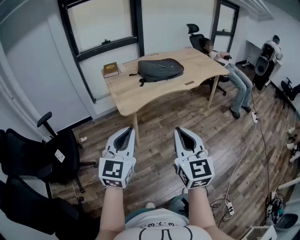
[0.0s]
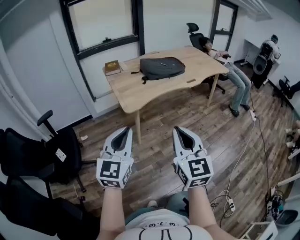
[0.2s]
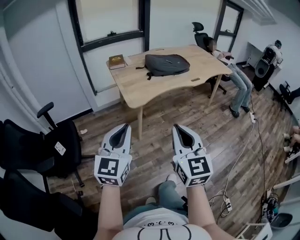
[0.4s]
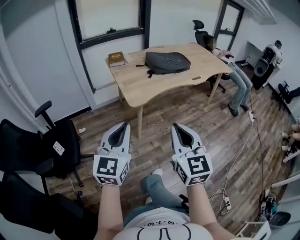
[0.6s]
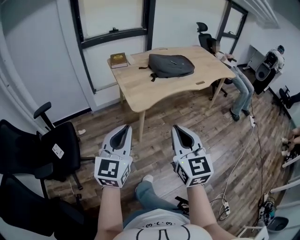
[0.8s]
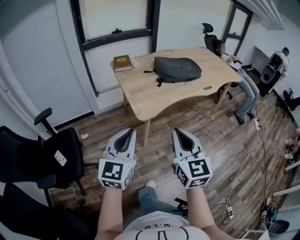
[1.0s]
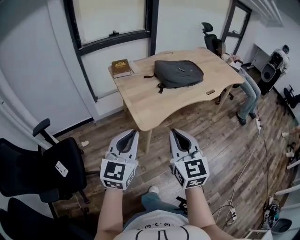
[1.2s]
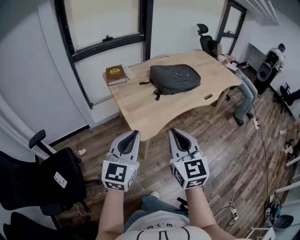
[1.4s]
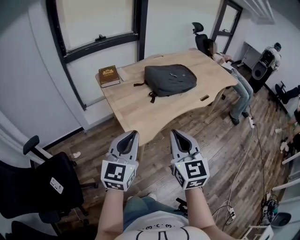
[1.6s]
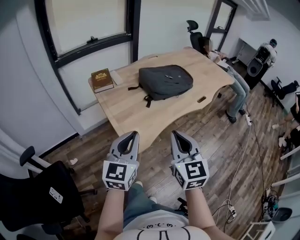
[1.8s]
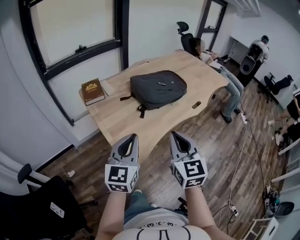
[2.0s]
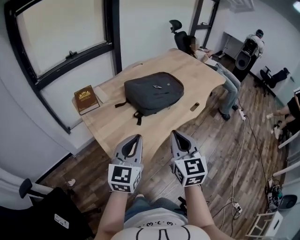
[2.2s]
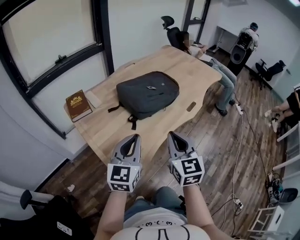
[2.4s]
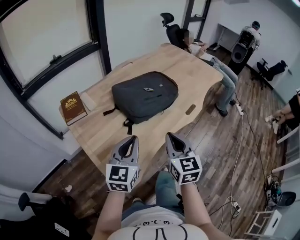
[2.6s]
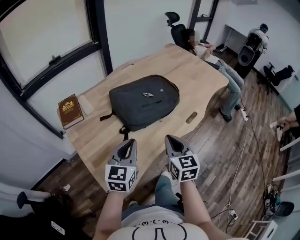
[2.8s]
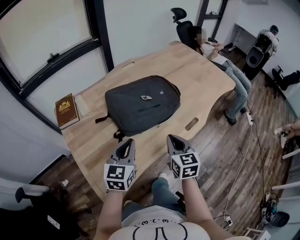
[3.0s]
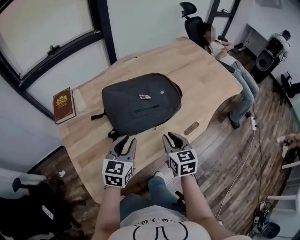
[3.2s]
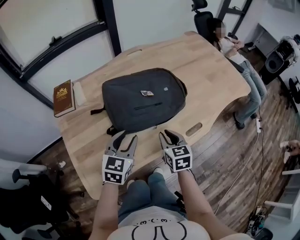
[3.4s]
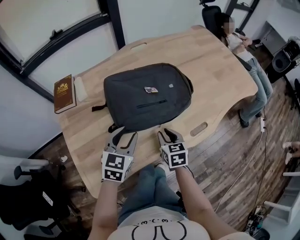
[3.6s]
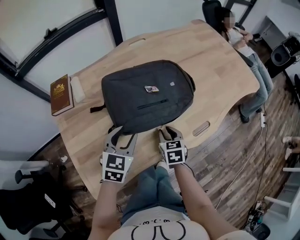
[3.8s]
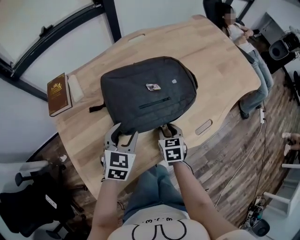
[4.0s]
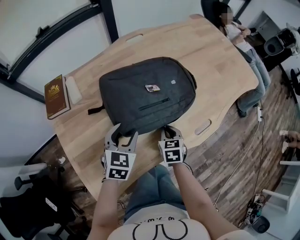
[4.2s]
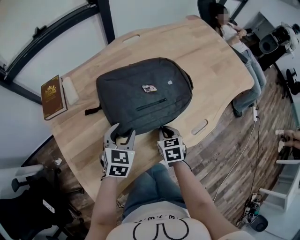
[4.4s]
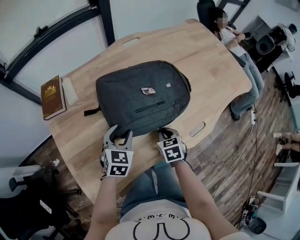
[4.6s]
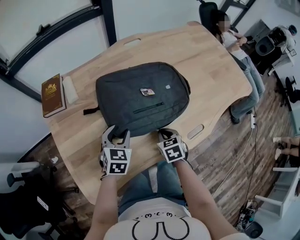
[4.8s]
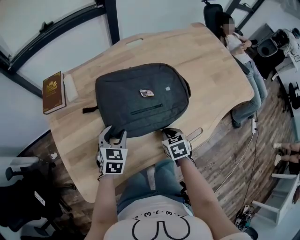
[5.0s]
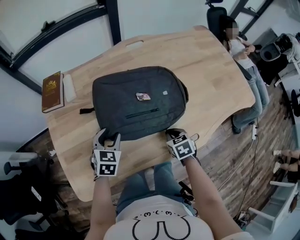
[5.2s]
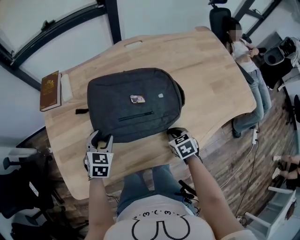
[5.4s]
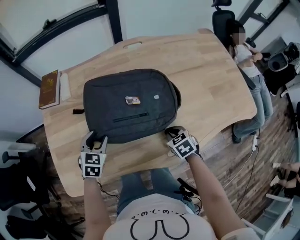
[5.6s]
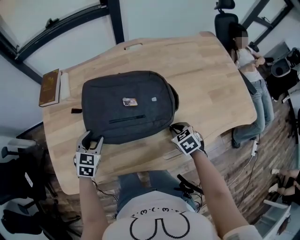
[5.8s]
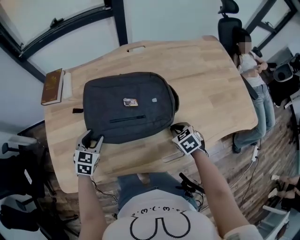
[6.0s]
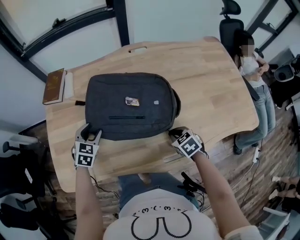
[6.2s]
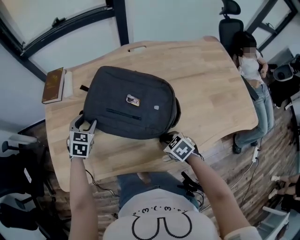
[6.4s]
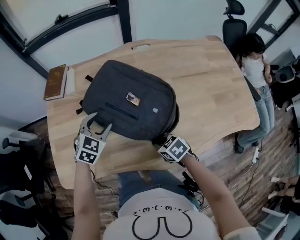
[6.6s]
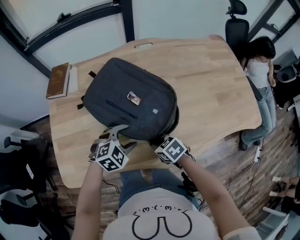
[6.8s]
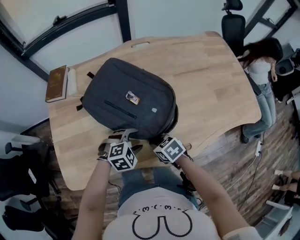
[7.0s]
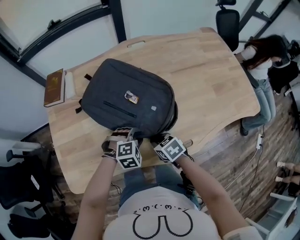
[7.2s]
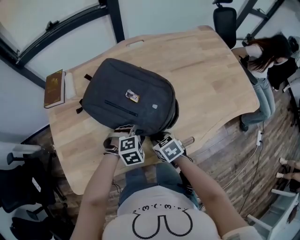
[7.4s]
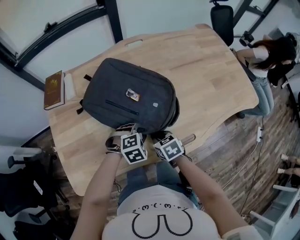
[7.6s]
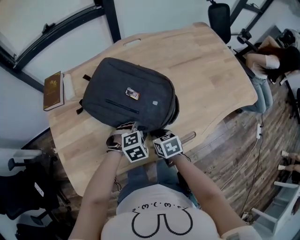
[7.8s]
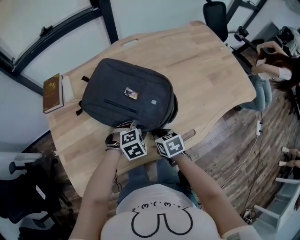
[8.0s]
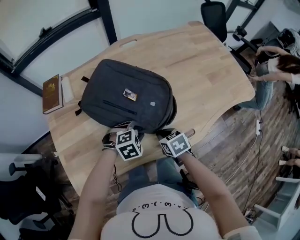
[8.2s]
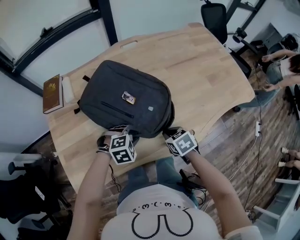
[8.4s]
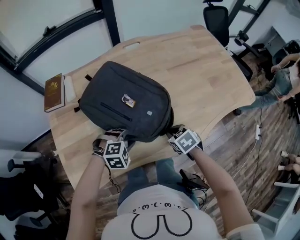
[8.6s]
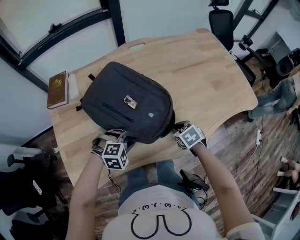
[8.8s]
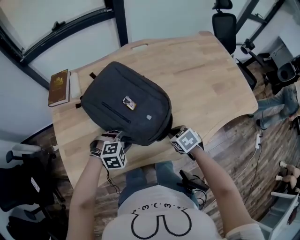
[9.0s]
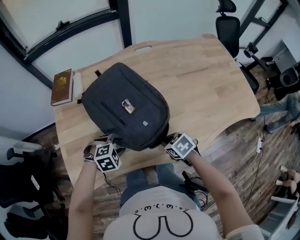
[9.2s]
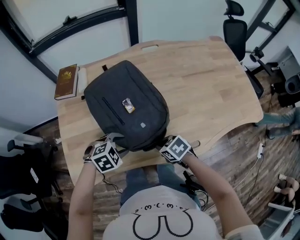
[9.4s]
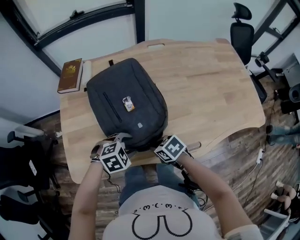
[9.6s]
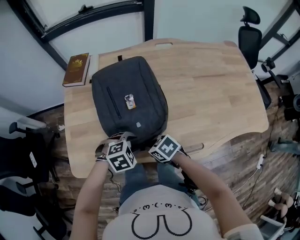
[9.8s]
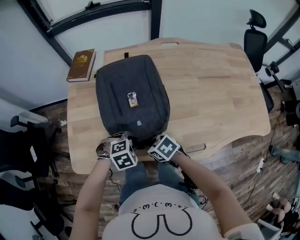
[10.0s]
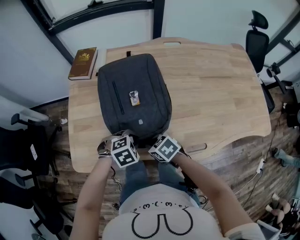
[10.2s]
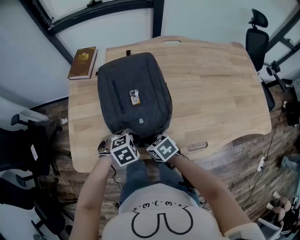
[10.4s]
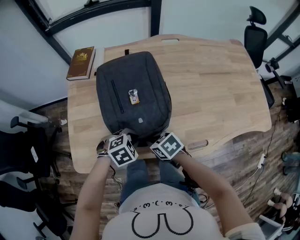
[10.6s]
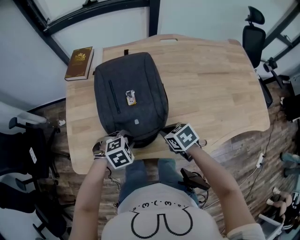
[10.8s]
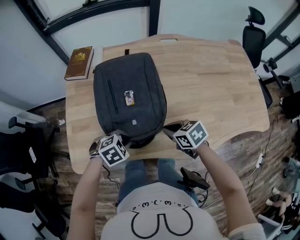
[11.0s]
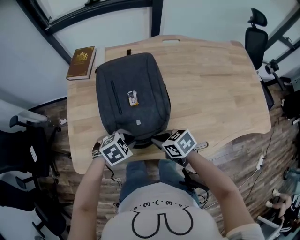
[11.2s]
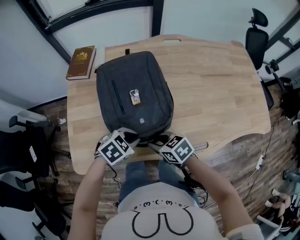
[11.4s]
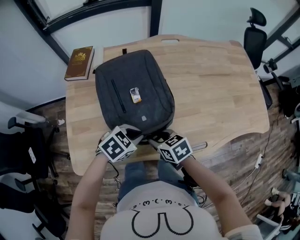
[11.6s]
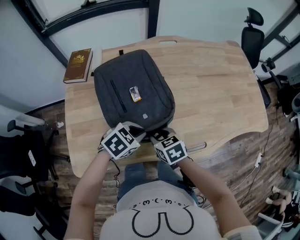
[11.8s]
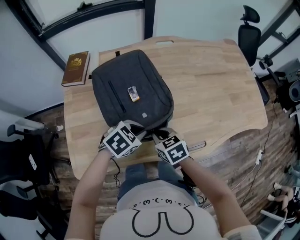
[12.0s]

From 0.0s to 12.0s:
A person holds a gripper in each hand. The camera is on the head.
From 0.0s to 1.6s: Both grippers travel together forward and to the left, approximately 30 cm.
From 1.6s to 3.0s: The two grippers go about 40 cm forward. The right gripper turns by some 20 degrees.
From 3.0s to 4.4s: The left gripper is displaced forward and downward by roughly 15 cm, turns by roughly 20 degrees, and opens. The right gripper heads downward and forward, covering roughly 20 cm, turns by some 30 degrees, and opens, then closes again.
From 4.4s to 6.0s: The right gripper moves approximately 20 cm, and turns by about 40 degrees.
From 6.0s to 7.6s: The right gripper shifts by some 20 cm, and changes its angle by some 20 degrees. The left gripper changes place by about 20 cm, changes its angle by about 60 degrees, and closes up.
From 7.6s to 9.0s: The left gripper moves to the left, approximately 10 cm; the right gripper is displaced to the right by about 5 cm.
From 9.0s to 10.4s: The right gripper ends up about 20 cm from where it was, and swivels some 20 degrees, while the left gripper rotates about 30 degrees, and opens and closes again.
From 10.4s to 12.0s: The right gripper changes place by some 10 cm, rotates about 20 degrees, and opens and closes again. The left gripper goes roughly 5 cm upward.

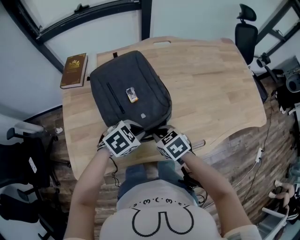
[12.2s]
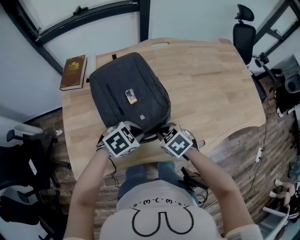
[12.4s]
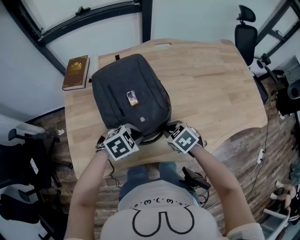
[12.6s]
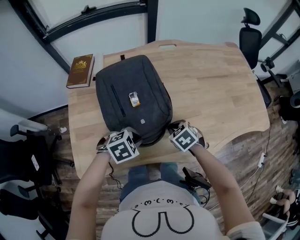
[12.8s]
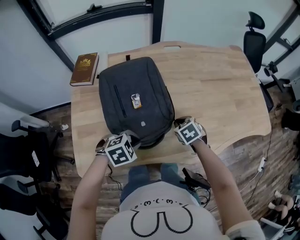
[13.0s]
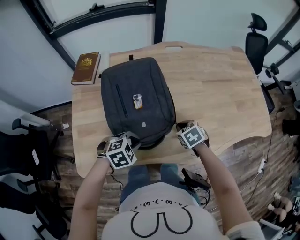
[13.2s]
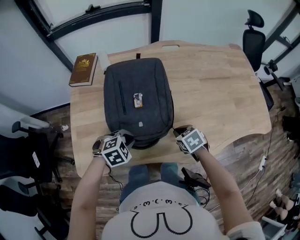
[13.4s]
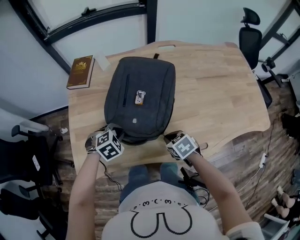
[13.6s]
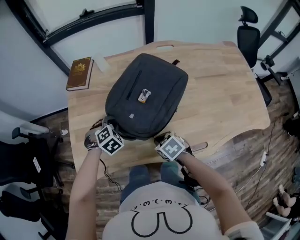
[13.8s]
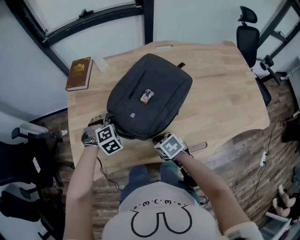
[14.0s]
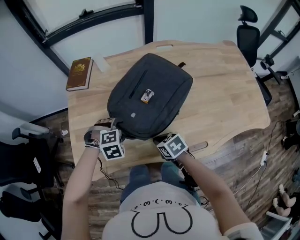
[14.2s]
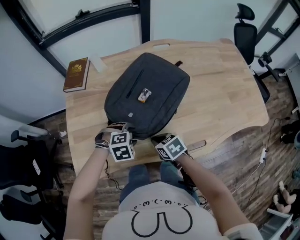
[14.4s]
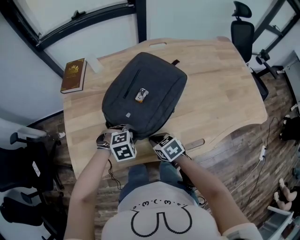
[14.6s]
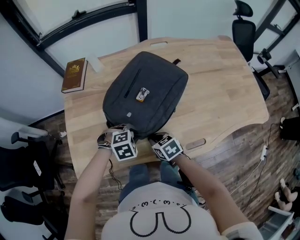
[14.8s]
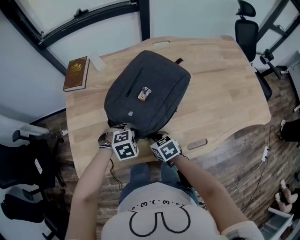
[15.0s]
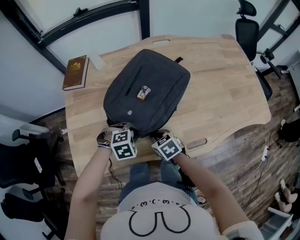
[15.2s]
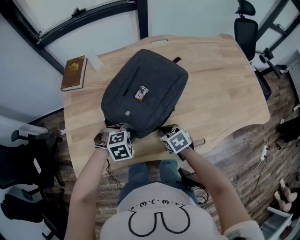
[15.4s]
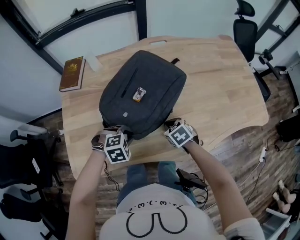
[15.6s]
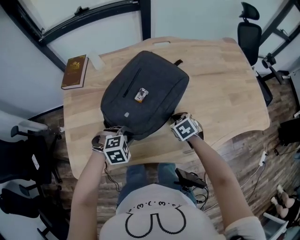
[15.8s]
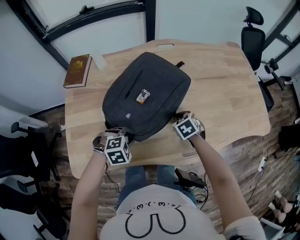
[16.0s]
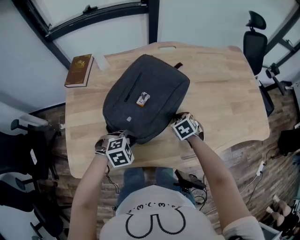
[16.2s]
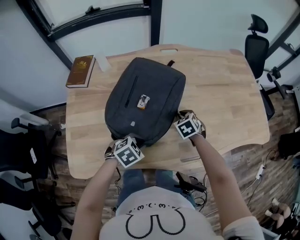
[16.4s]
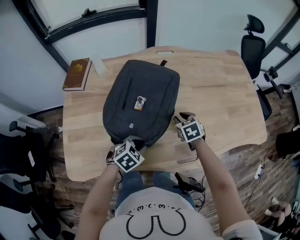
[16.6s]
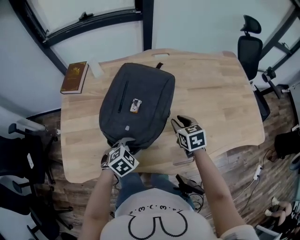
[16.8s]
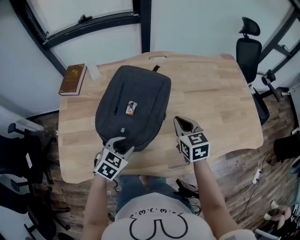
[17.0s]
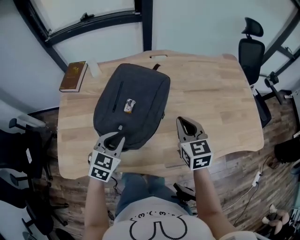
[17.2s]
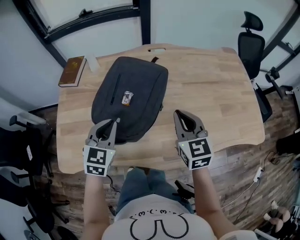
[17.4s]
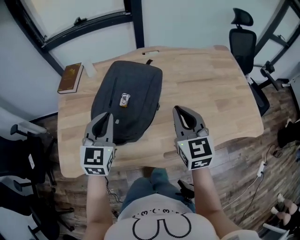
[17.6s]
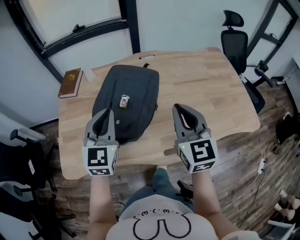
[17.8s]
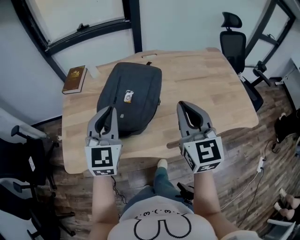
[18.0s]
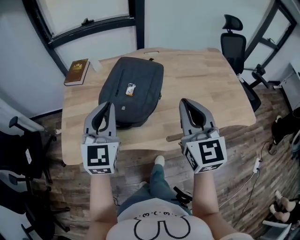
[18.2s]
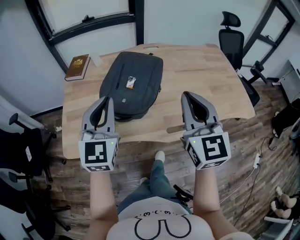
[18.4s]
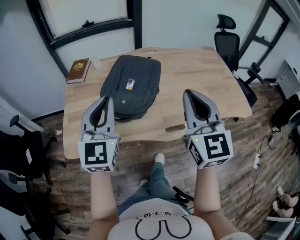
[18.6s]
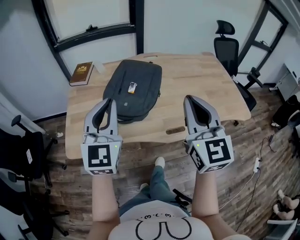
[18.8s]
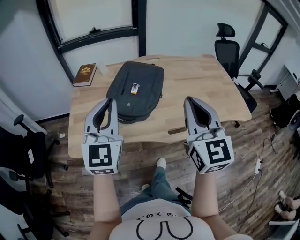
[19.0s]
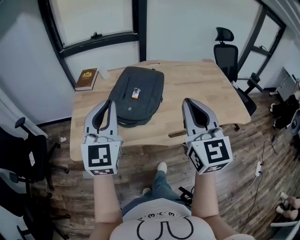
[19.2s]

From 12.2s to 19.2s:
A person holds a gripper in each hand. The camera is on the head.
From 12.2s to 13.6s: The left gripper shifts by some 15 cm, and changes its angle by some 30 degrees.
From 13.6s to 15.0s: The right gripper changes place by approximately 5 cm. Meanwhile the left gripper moves approximately 10 cm, and opens, then closes again.
From 15.0s to 16.4s: The right gripper moves forward and to the right, some 25 cm, and turns by some 30 degrees, while the left gripper swivels approximately 30 degrees.
From 16.4s to 17.8s: Both grippers travel together upward, approximately 30 cm. The left gripper points its fingers about 50 degrees further upward, and opens and closes again. Meanwhile the right gripper angles its fingers upward, by about 50 degrees.
From 17.8s to 19.2s: Both grippers move backward and upward, about 20 cm.

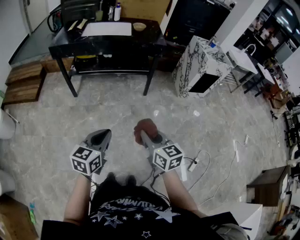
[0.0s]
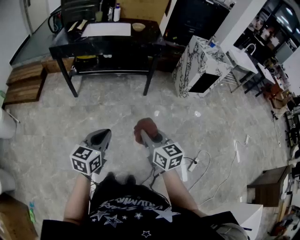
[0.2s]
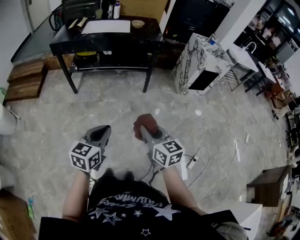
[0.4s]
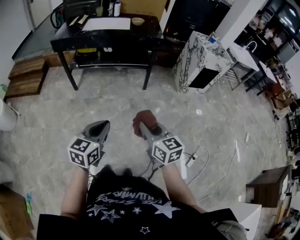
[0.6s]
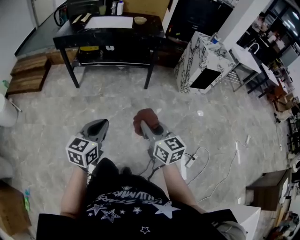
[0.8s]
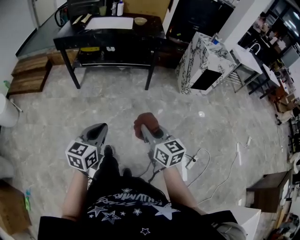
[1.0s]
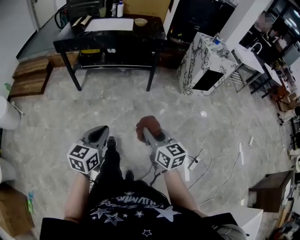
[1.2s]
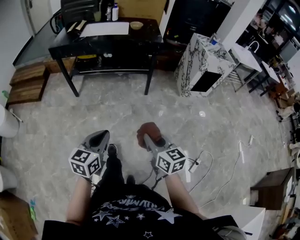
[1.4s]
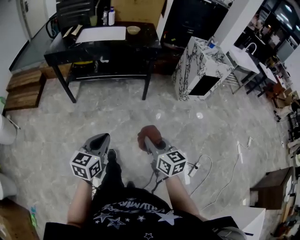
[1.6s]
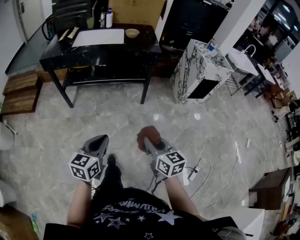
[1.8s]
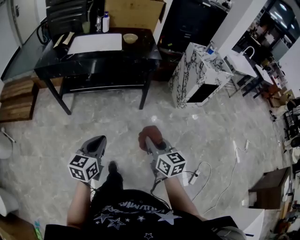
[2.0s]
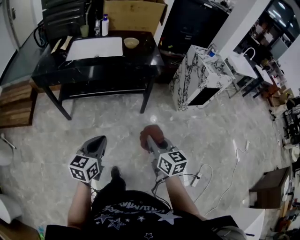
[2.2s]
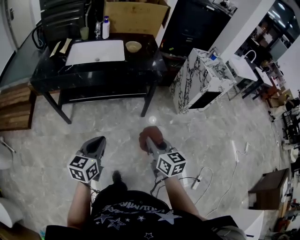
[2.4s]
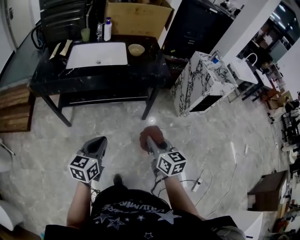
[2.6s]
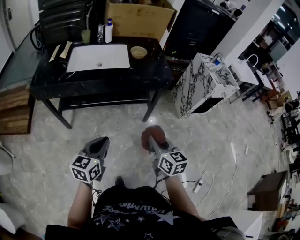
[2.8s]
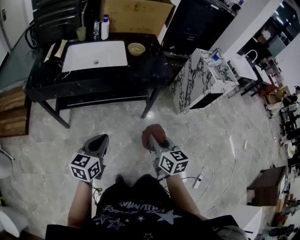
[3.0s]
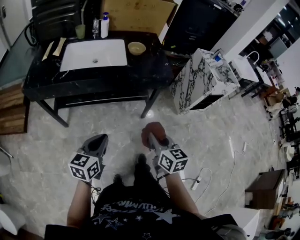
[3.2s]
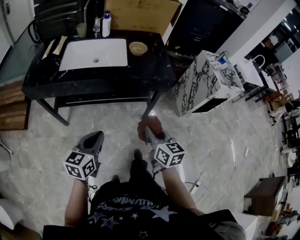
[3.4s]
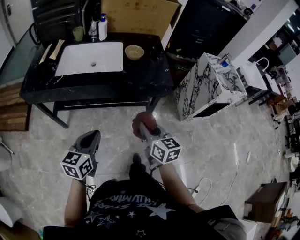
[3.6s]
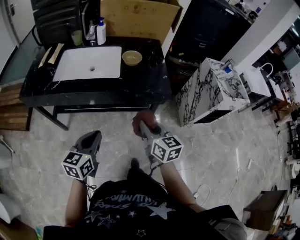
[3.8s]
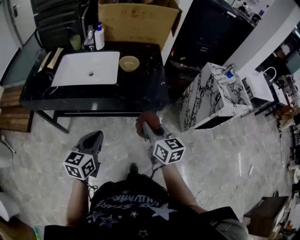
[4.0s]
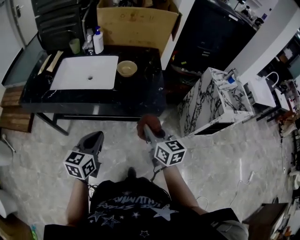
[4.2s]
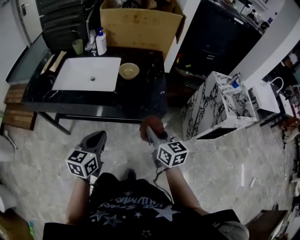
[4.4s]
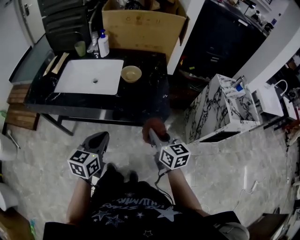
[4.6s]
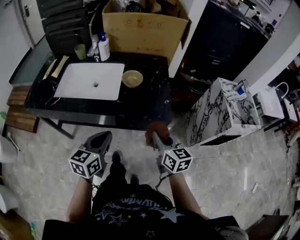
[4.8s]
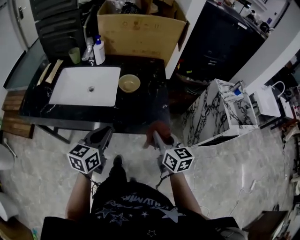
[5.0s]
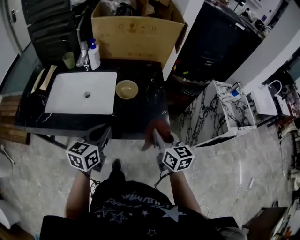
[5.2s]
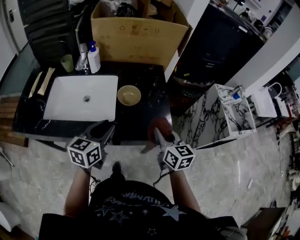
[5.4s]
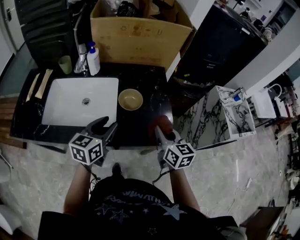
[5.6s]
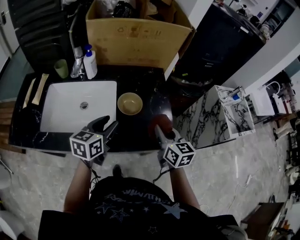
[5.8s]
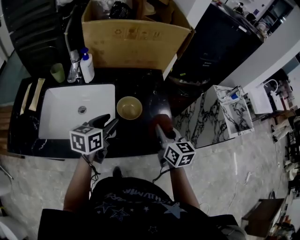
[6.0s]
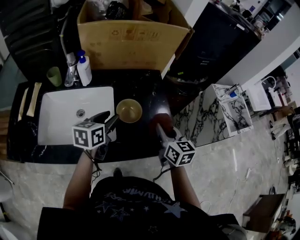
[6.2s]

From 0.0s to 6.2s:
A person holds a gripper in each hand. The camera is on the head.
From 0.0s to 1.6s: The left gripper reaches roughly 5 cm backward, then returns. Meanwhile the right gripper heads to the right, covering roughly 5 cm.
From 1.6s to 3.2s: Both grippers travel together forward, about 35 cm.
From 3.2s to 4.6s: Both grippers move forward and to the right, about 25 cm.
From 4.6s to 6.2s: The two grippers go about 30 cm forward. The left gripper opens.
